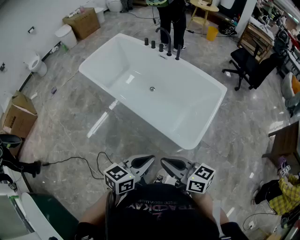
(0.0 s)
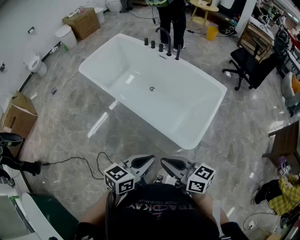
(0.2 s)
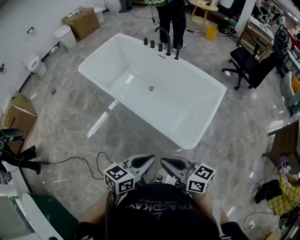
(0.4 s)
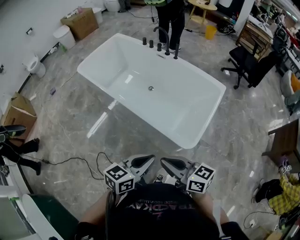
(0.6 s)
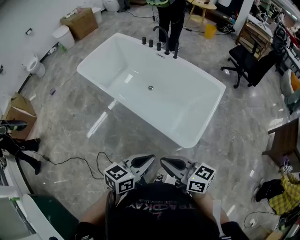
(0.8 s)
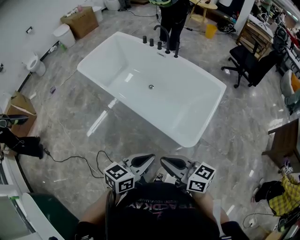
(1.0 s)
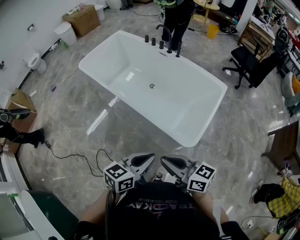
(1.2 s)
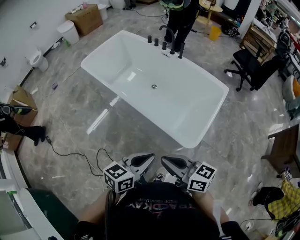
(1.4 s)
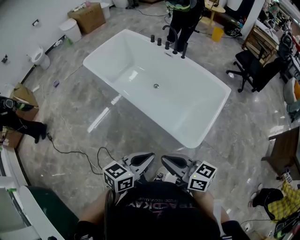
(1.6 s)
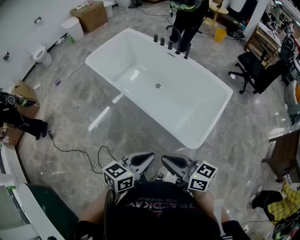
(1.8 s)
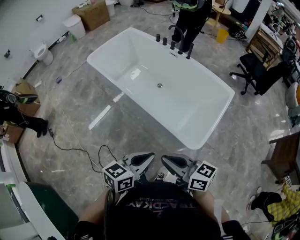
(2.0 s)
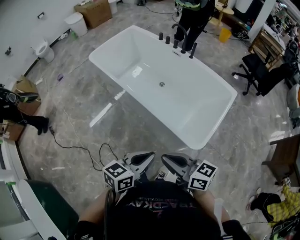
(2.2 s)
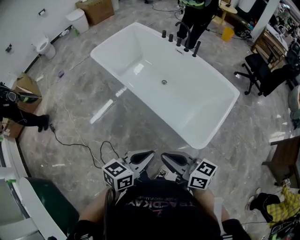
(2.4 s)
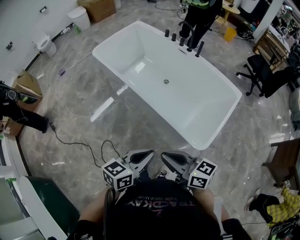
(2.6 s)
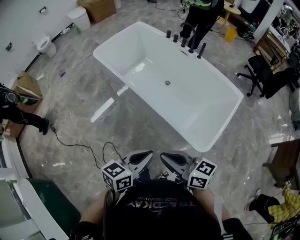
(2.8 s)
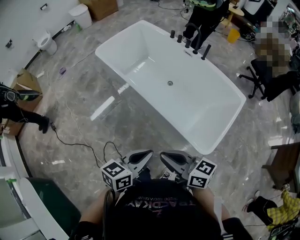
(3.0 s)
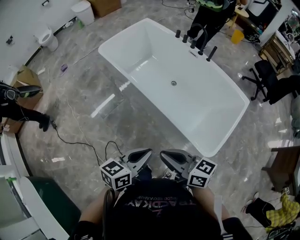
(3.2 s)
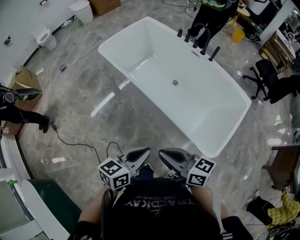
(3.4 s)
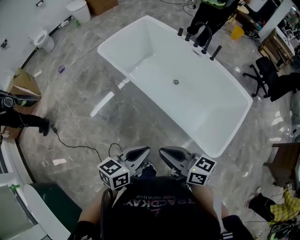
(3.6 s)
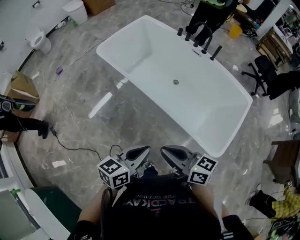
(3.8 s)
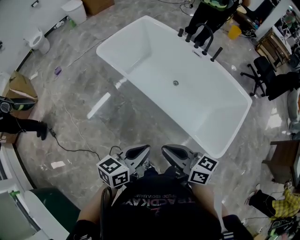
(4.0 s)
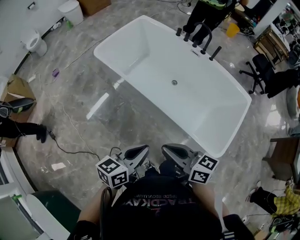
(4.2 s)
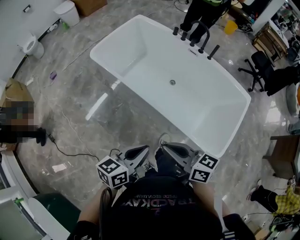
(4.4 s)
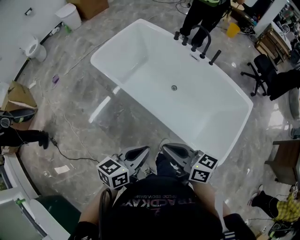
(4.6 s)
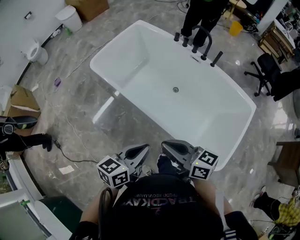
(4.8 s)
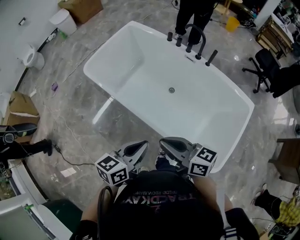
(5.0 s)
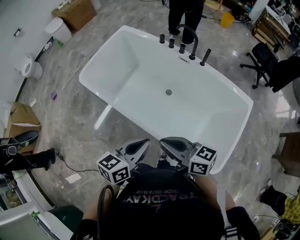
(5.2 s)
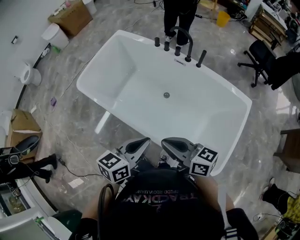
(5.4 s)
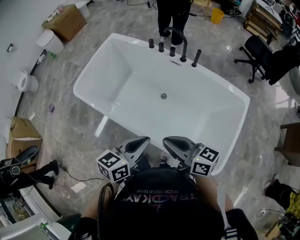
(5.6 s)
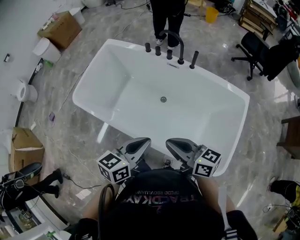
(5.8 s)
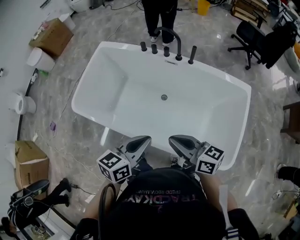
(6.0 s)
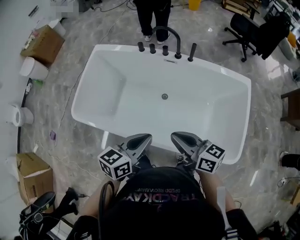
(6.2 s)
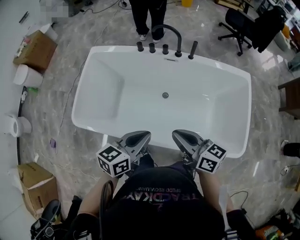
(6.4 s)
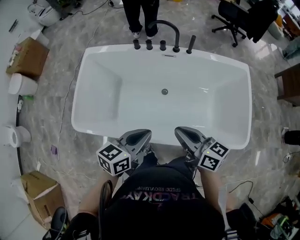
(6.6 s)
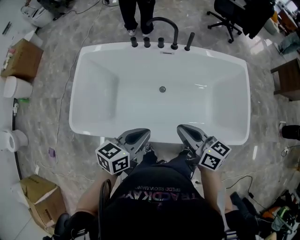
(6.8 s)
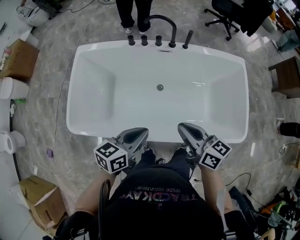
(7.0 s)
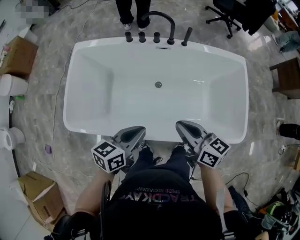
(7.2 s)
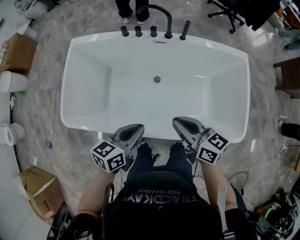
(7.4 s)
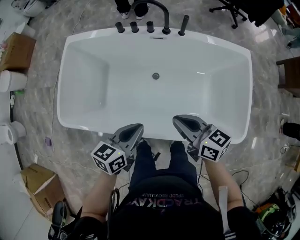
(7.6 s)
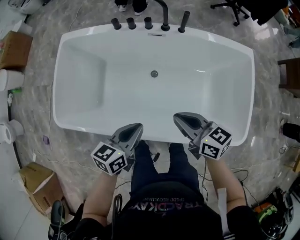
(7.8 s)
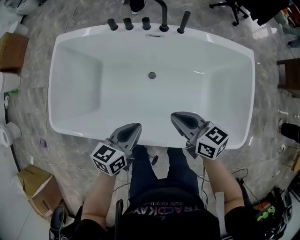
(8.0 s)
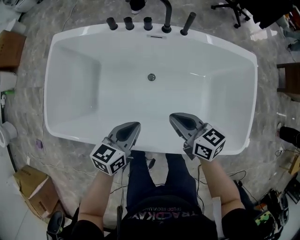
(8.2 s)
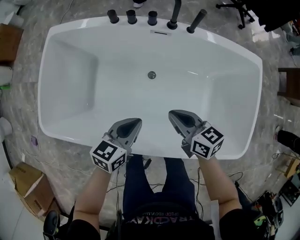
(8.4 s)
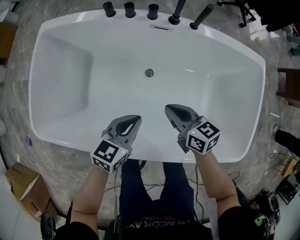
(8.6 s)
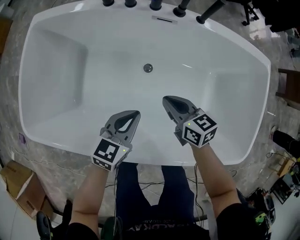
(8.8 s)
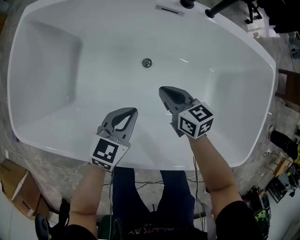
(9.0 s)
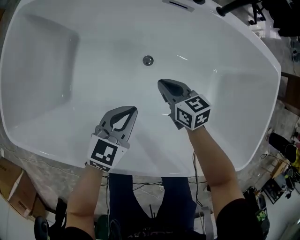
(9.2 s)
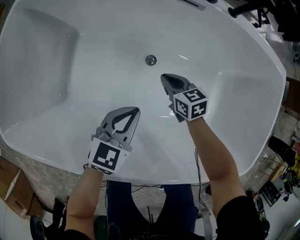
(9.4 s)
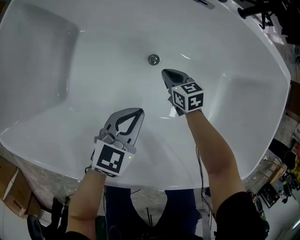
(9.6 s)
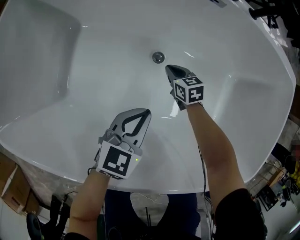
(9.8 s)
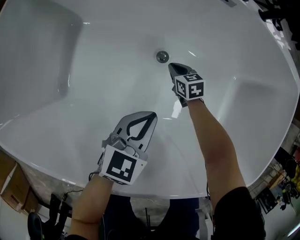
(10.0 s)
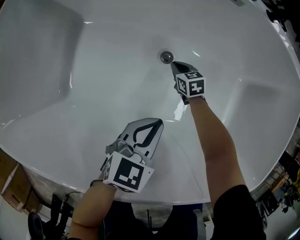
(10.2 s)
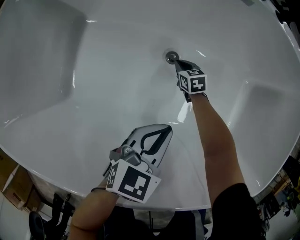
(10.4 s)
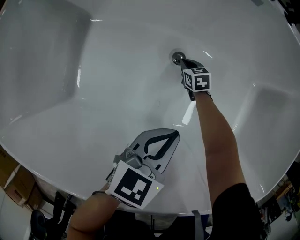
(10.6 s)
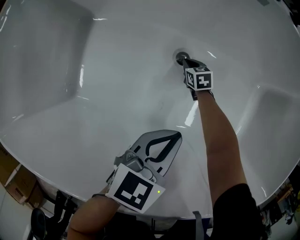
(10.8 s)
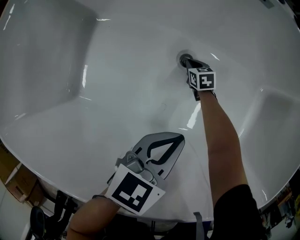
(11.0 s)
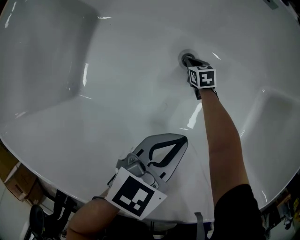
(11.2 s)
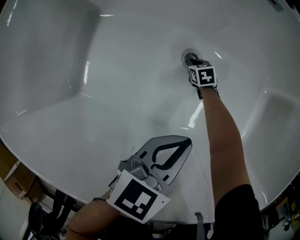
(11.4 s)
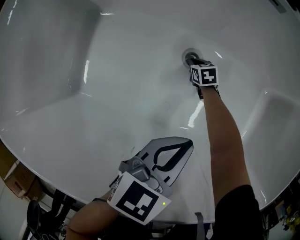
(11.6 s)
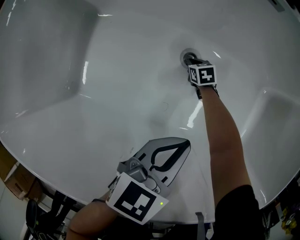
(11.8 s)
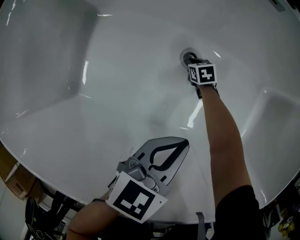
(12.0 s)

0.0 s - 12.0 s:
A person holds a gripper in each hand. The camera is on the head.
0.0 s - 1.6 s: The grippers move only a little.
1.6 s - 3.0 s: The two grippers go about 10 cm to the left and forward.
3.0 s - 4.4 s: The two grippers go roughly 15 cm forward and to the left.
4.4 s - 6.0 s: The right gripper is displaced forward and to the right by roughly 25 cm. Meanwhile the left gripper is displaced forward by approximately 25 cm.
6.0 s - 7.6 s: The right gripper travels forward, downward and to the left by about 10 cm. Meanwhile the left gripper goes approximately 15 cm to the left, downward and forward.
7.6 s - 9.0 s: The grippers both shift downward and forward by roughly 30 cm.
9.0 s - 10.4 s: The right gripper heads downward, covering roughly 35 cm, and changes its angle by about 20 degrees; the left gripper travels downward by approximately 10 cm.
10.4 s - 12.0 s: The right gripper heads downward, covering roughly 5 cm.

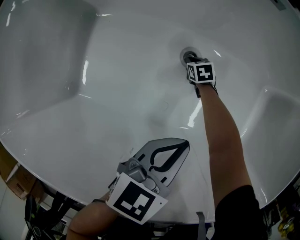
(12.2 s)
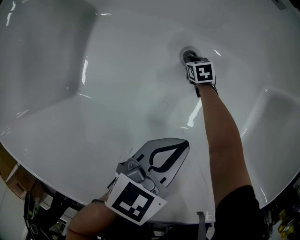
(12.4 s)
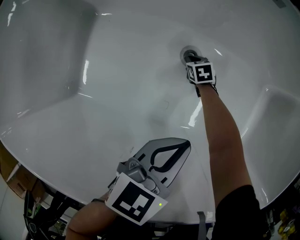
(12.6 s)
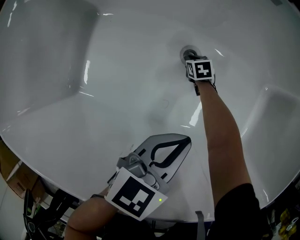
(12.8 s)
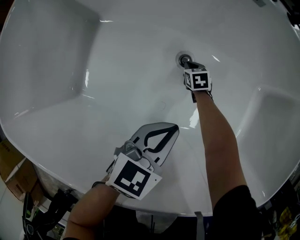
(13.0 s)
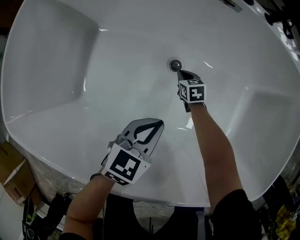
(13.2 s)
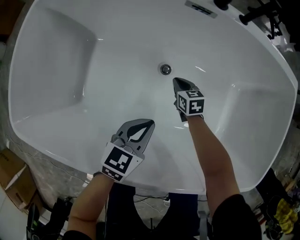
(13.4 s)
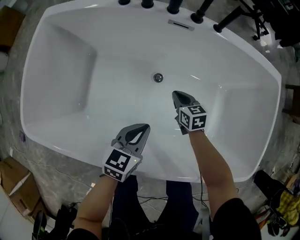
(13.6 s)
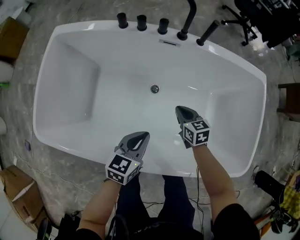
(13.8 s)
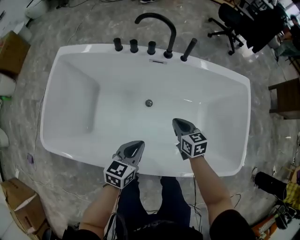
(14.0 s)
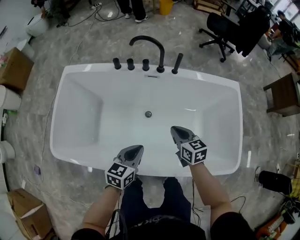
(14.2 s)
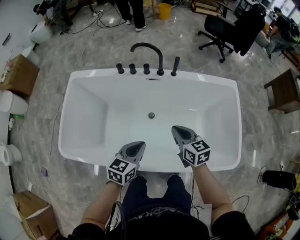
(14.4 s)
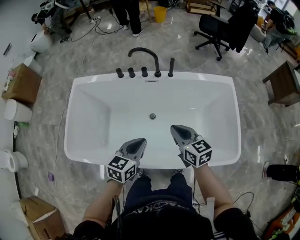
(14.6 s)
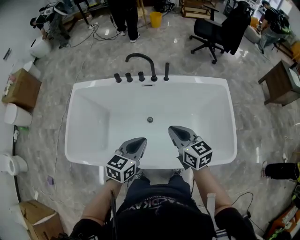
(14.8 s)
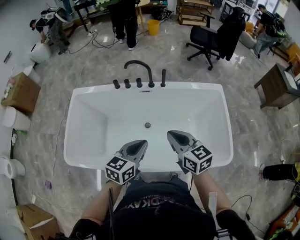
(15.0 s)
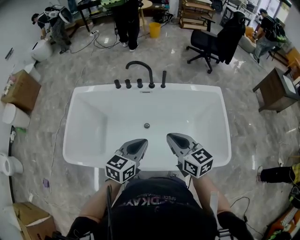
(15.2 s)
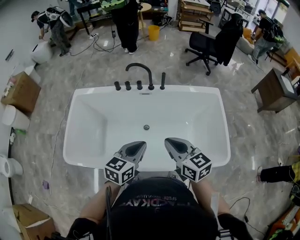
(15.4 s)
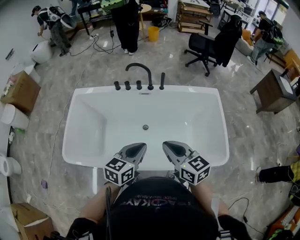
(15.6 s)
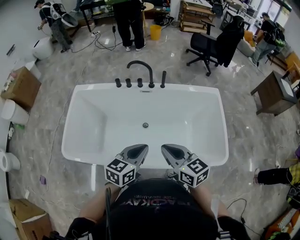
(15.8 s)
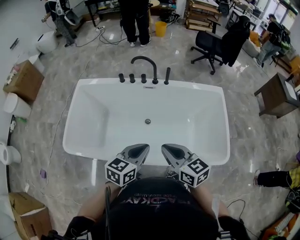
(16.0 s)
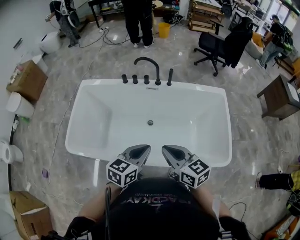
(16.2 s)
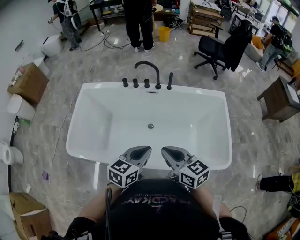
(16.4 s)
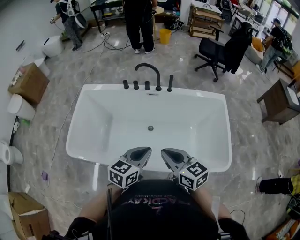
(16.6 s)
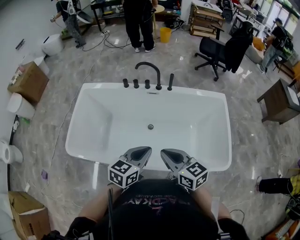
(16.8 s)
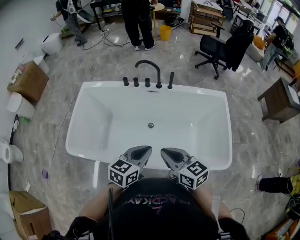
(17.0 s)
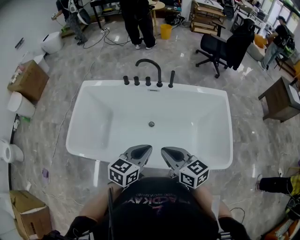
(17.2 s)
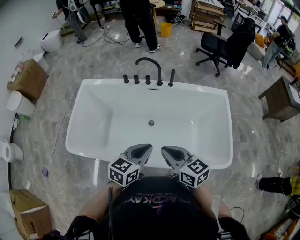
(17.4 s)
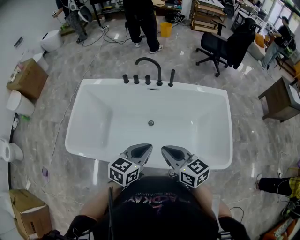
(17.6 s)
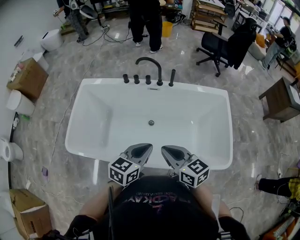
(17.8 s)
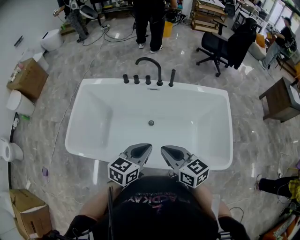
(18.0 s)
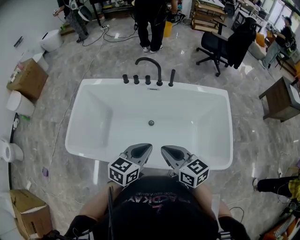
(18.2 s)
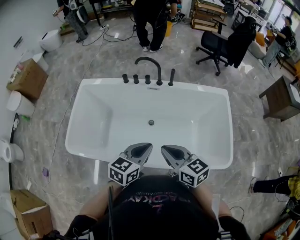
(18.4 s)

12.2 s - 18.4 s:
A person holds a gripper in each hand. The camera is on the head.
12.2 s - 13.8 s: The right gripper shifts roughly 40 cm upward, and turns by roughly 30 degrees; the left gripper moves upward, about 15 cm.
13.8 s - 15.4 s: The left gripper is displaced upward by some 25 cm. The right gripper is displaced upward and backward by approximately 40 cm, and turns by about 30 degrees.
15.4 s - 16.8 s: The right gripper ends up roughly 5 cm from where it was.
16.8 s - 18.4 s: There are only small adjustments of the grippers.

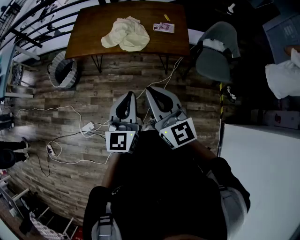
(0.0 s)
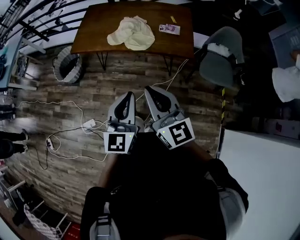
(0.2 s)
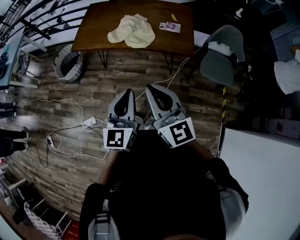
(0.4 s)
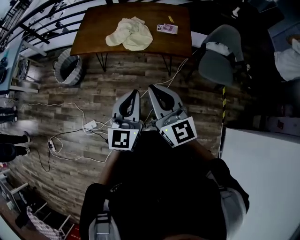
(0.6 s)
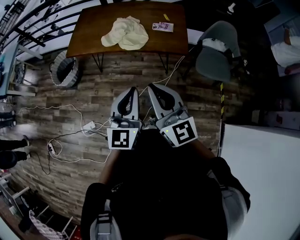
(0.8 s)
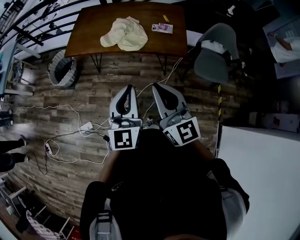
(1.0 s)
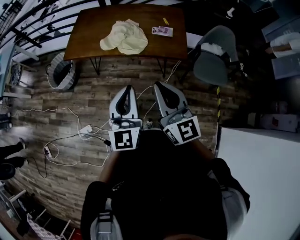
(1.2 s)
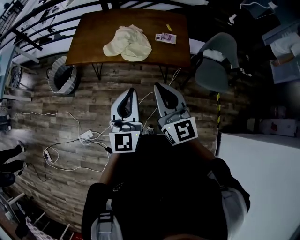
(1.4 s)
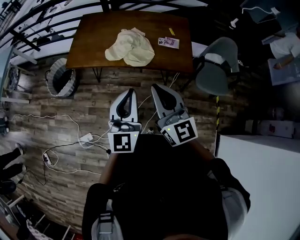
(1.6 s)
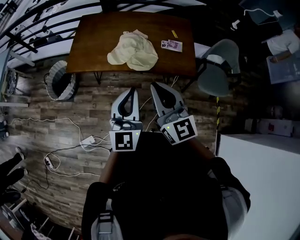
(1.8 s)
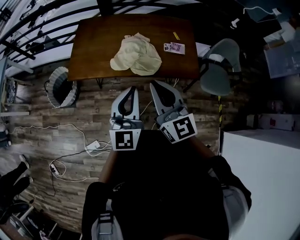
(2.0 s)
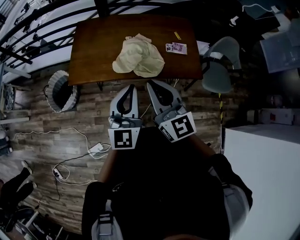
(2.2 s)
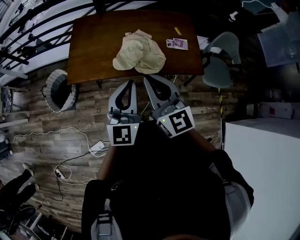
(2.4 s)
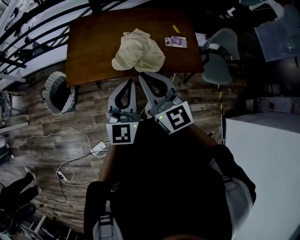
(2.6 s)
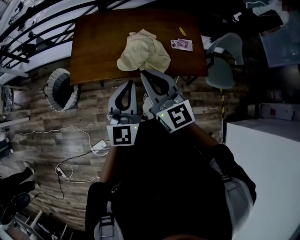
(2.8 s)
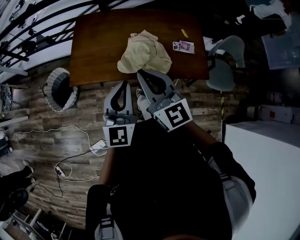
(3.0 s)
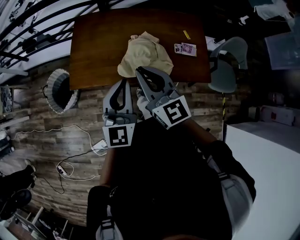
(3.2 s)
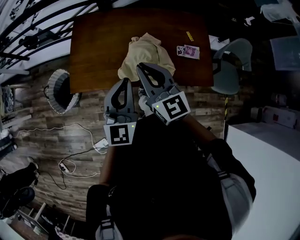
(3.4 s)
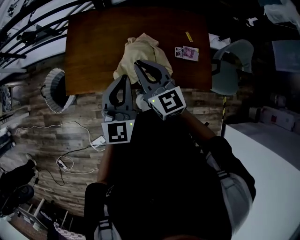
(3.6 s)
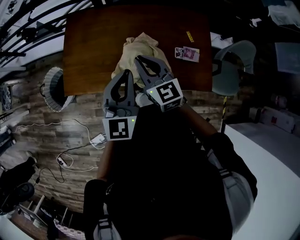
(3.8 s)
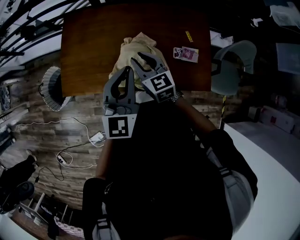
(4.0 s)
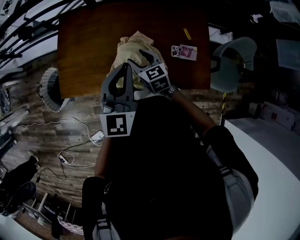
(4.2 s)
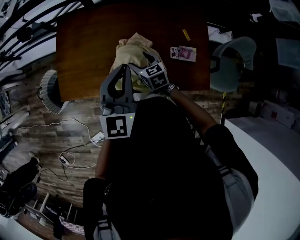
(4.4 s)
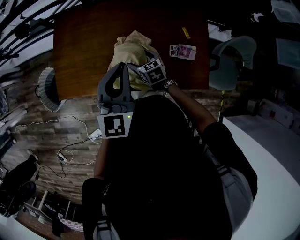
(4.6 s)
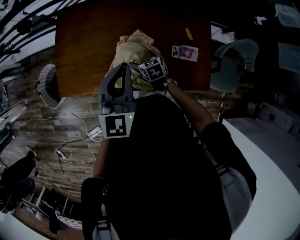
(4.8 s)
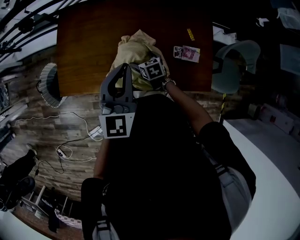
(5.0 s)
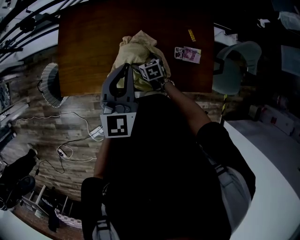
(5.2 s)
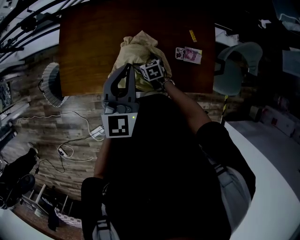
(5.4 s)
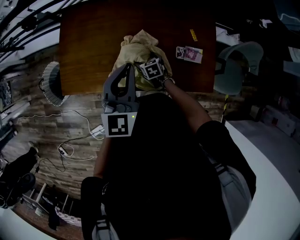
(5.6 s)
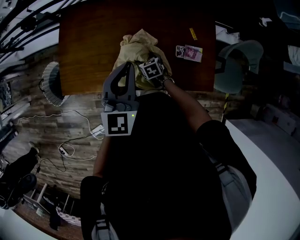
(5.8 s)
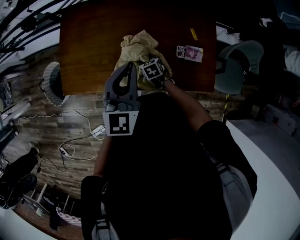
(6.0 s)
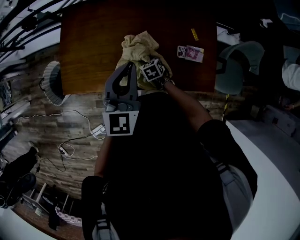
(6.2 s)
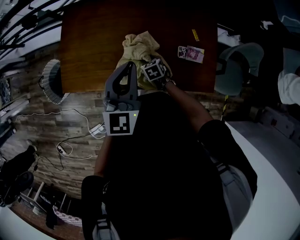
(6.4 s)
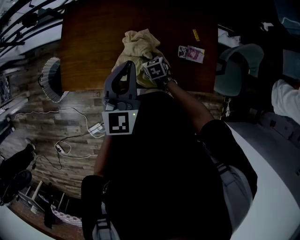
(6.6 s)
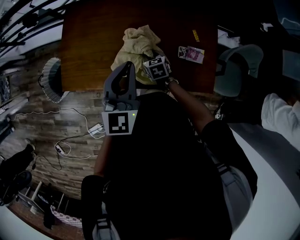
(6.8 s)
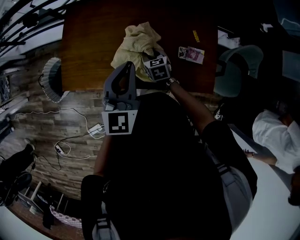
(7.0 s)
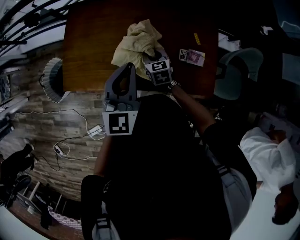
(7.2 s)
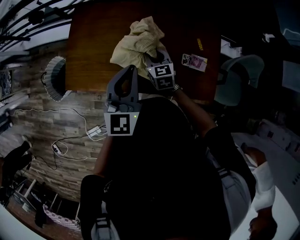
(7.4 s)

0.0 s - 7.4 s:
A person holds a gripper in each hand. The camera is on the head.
0.0 s - 1.4 s: Both grippers move forward, about 5 cm.
1.4 s - 3.0 s: Both grippers move forward and to the left, roughly 30 cm.
3.0 s - 4.4 s: The right gripper shifts approximately 40 cm downward, forward and to the right, angles its fingers downward, by roughly 40 degrees, and opens up. Meanwhile the left gripper heads forward and to the right, covering roughly 25 cm.
4.4 s - 6.0 s: The right gripper heads downward, covering approximately 15 cm, and rotates approximately 20 degrees.
6.0 s - 7.4 s: The right gripper shifts some 15 cm upward, and swivels approximately 30 degrees.
